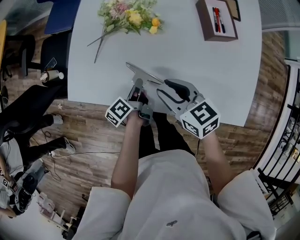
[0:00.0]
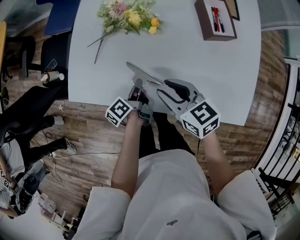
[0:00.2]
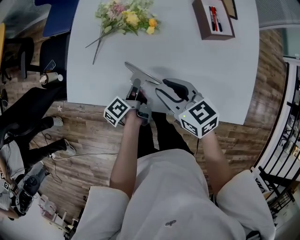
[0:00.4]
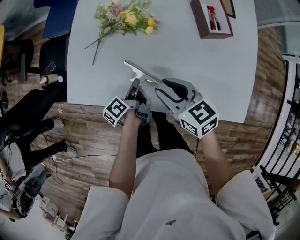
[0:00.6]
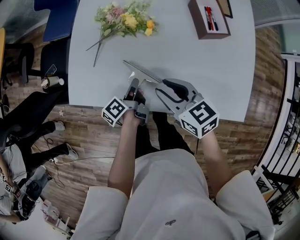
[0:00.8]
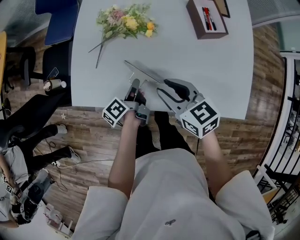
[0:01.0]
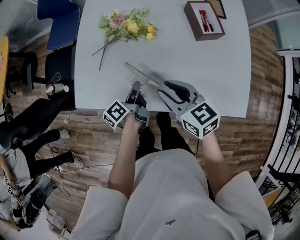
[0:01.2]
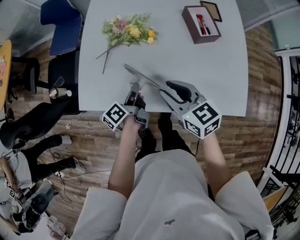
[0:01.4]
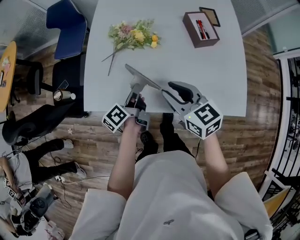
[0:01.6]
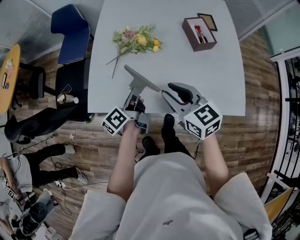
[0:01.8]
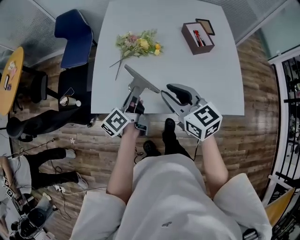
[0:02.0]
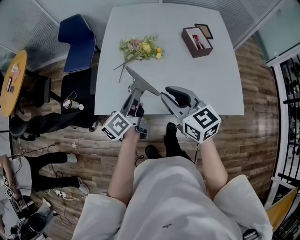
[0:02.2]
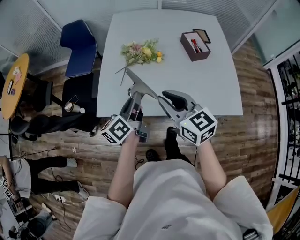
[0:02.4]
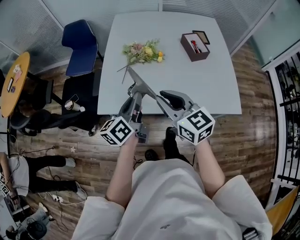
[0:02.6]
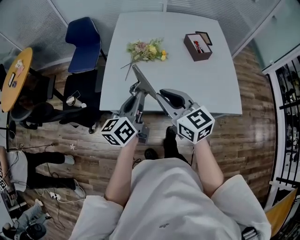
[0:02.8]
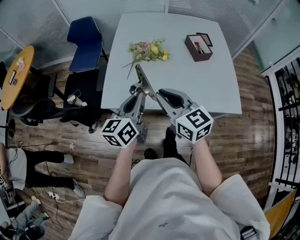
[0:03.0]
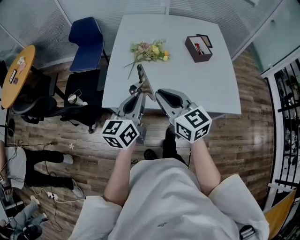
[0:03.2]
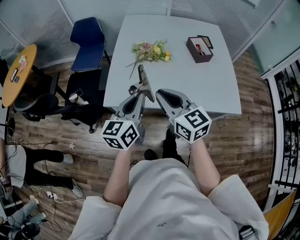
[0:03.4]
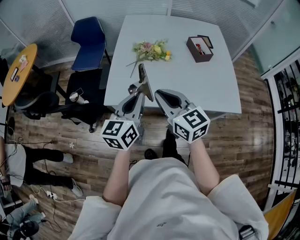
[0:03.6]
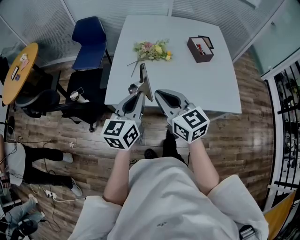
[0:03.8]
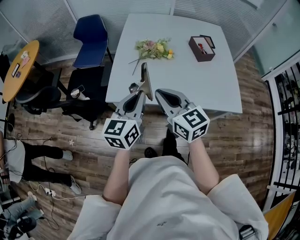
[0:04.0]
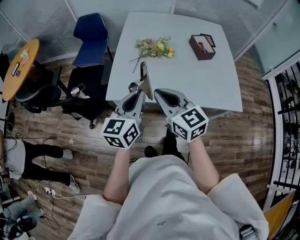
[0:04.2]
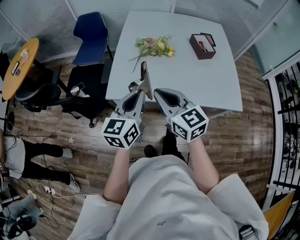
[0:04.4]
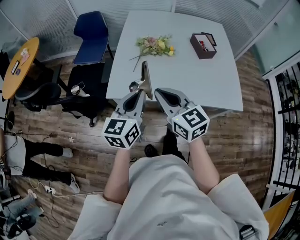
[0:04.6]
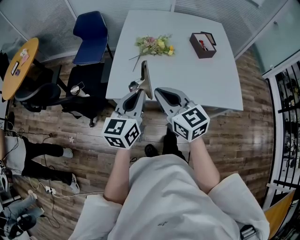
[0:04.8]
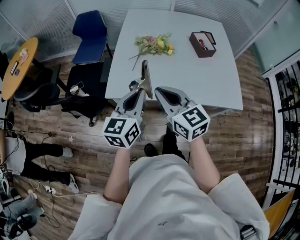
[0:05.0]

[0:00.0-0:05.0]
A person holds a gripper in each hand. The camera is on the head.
0.0 to 1.6 s: The two grippers go approximately 10 cm upward.
1.6 to 3.4 s: The left gripper travels upward, backward and to the left by approximately 25 cm, and twists some 50 degrees clockwise, seen from behind; the right gripper heads to the left, upward and backward, covering some 20 cm, and closes its fingers.
3.4 to 5.0 s: The grippers make only small movements.

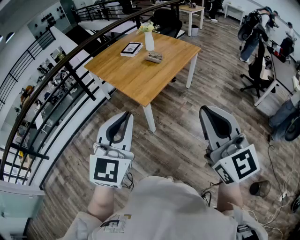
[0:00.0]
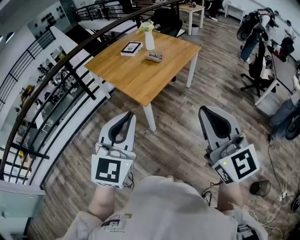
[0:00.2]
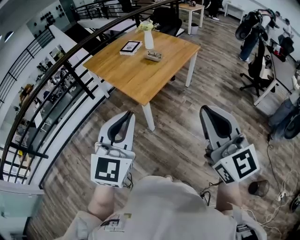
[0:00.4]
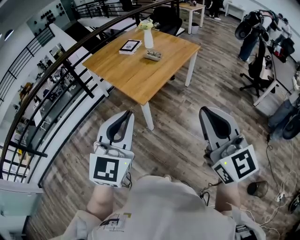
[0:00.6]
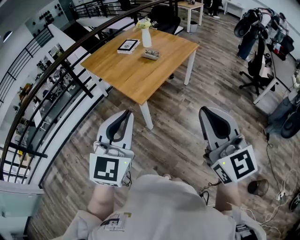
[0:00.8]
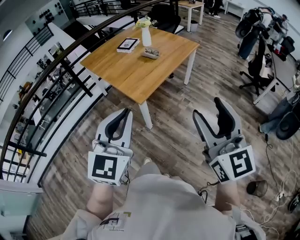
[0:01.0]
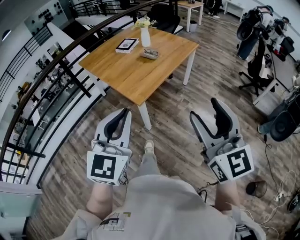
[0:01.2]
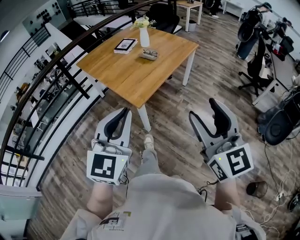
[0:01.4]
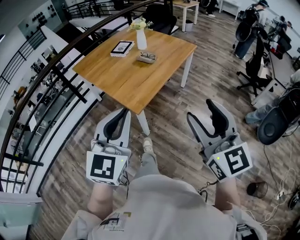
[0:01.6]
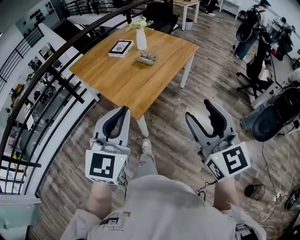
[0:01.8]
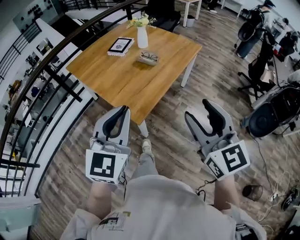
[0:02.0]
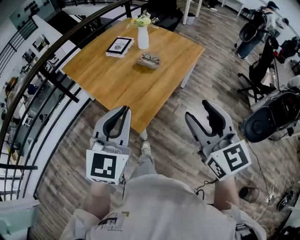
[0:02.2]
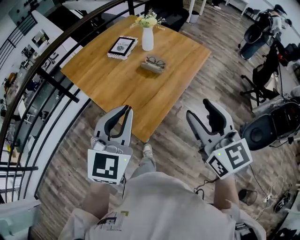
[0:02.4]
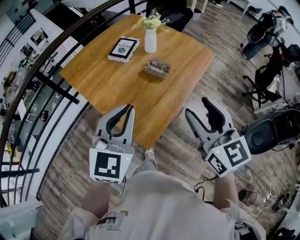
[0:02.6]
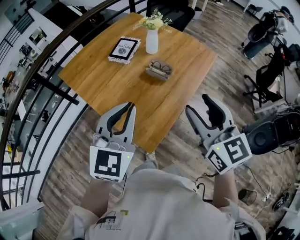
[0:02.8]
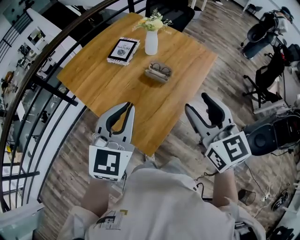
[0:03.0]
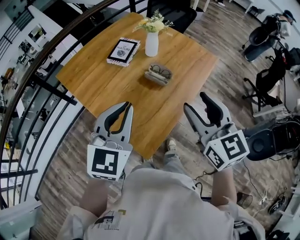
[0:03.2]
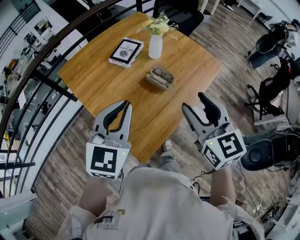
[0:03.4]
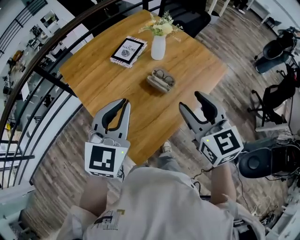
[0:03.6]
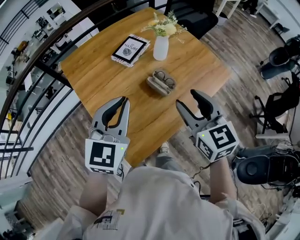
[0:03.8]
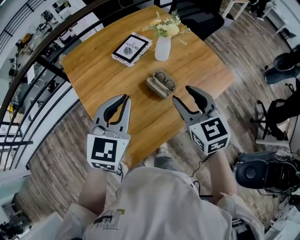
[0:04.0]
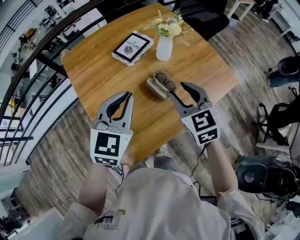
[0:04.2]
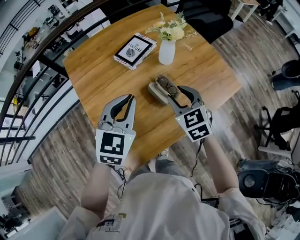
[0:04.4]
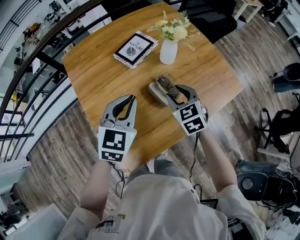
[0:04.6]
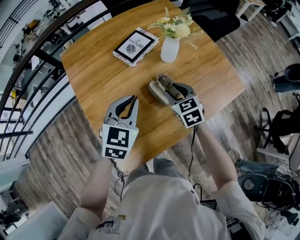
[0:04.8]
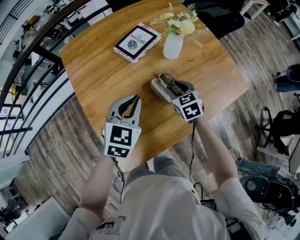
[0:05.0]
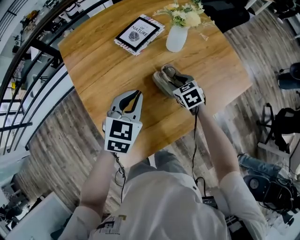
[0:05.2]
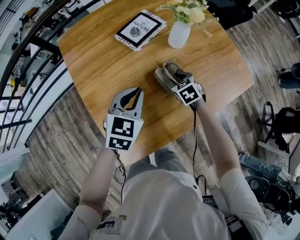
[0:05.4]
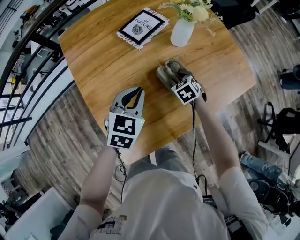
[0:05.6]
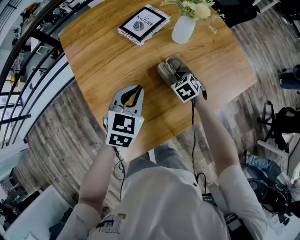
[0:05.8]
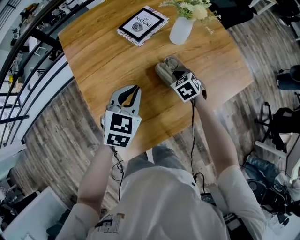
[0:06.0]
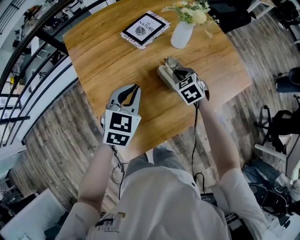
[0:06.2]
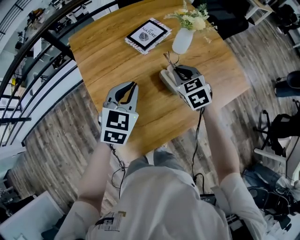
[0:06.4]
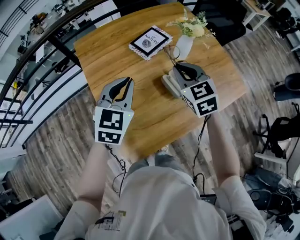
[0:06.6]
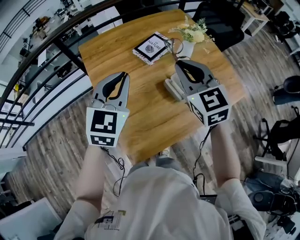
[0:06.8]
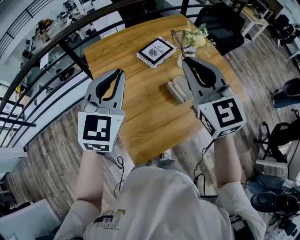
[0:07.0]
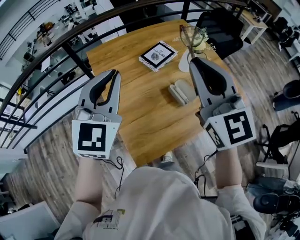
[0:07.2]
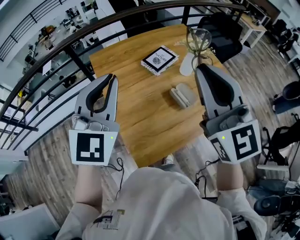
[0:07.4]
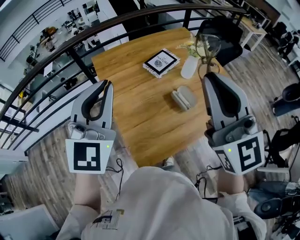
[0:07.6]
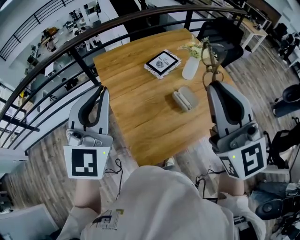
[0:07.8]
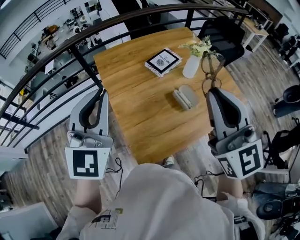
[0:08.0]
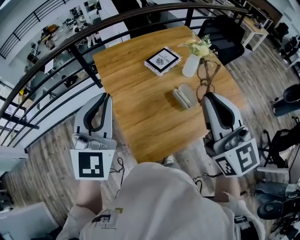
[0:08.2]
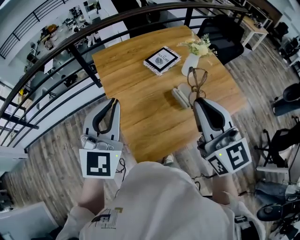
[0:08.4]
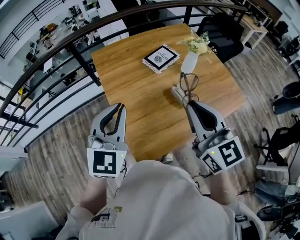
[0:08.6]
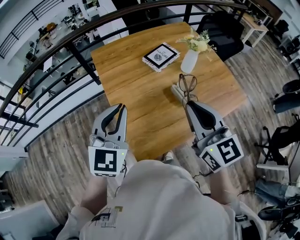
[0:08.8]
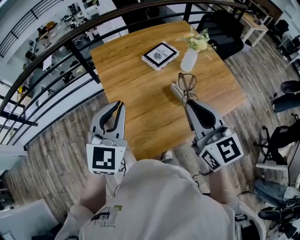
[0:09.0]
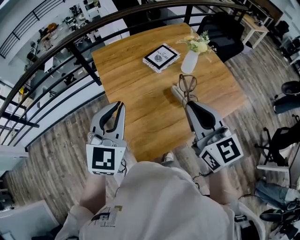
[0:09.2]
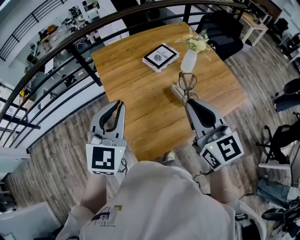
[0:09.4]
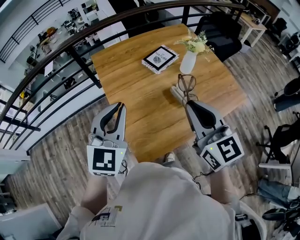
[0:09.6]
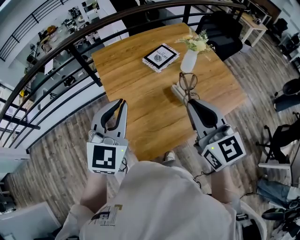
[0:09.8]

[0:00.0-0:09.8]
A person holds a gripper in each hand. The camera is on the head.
0.0 to 1.4 s: The grippers both shift forward by approximately 5 cm. The right gripper opens.
1.4 to 2.8 s: Both grippers are carried forward, approximately 50 cm.
2.8 to 4.2 s: The right gripper heads forward and downward, covering approximately 30 cm, and changes its angle by roughly 30 degrees; the left gripper travels forward and to the right by some 20 cm.
4.2 to 5.6 s: The left gripper shifts about 20 cm downward. The right gripper is displaced downward and forward by roughly 35 cm, and tips its fingers downward by roughly 30 degrees.
5.6 to 7.0 s: The left gripper shifts some 30 cm upward and to the left, and changes its angle by roughly 30 degrees, while the right gripper is displaced upward by roughly 50 cm, tilts its fingers approximately 50 degrees upward, and closes.
7.0 to 8.4 s: The right gripper shifts roughly 10 cm backward. The left gripper moves backward and to the left, some 10 cm.
8.4 to 9.8 s: The grippers make only small movements.

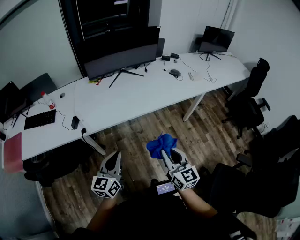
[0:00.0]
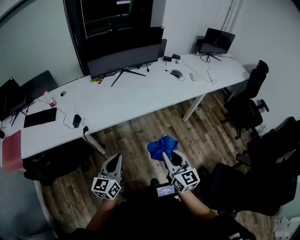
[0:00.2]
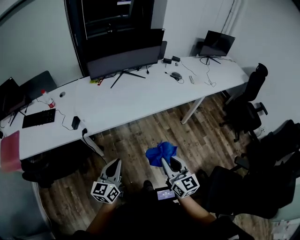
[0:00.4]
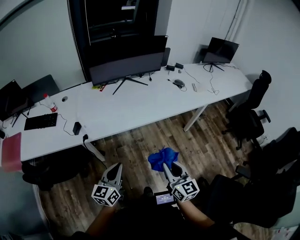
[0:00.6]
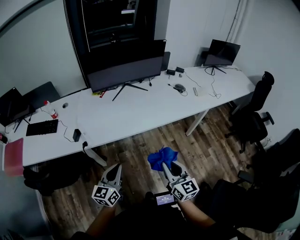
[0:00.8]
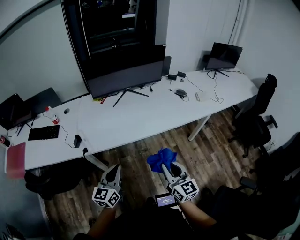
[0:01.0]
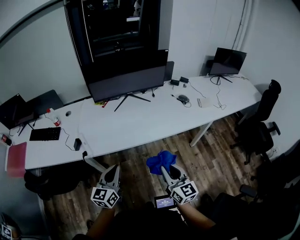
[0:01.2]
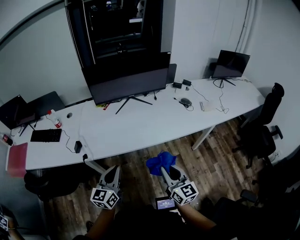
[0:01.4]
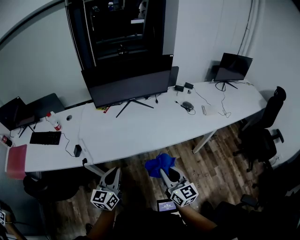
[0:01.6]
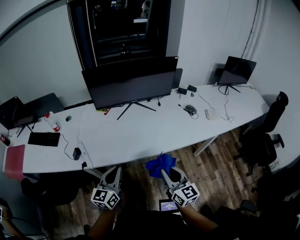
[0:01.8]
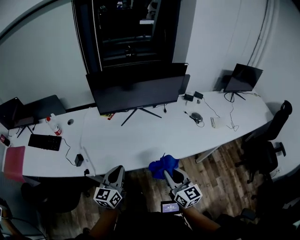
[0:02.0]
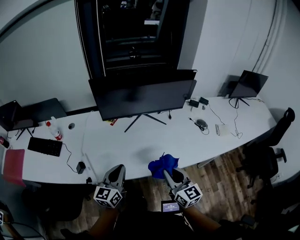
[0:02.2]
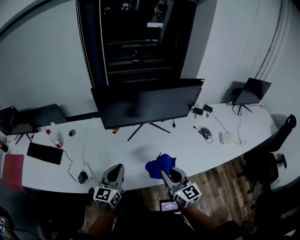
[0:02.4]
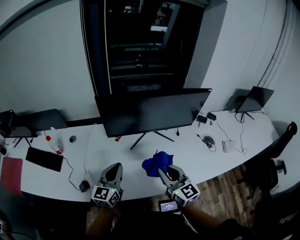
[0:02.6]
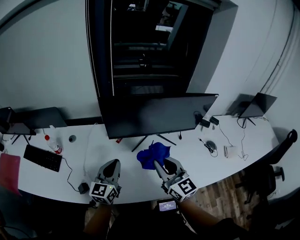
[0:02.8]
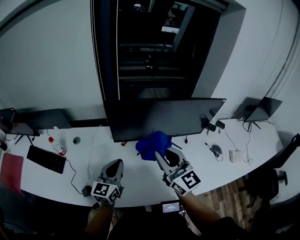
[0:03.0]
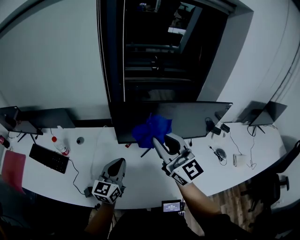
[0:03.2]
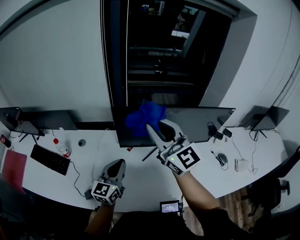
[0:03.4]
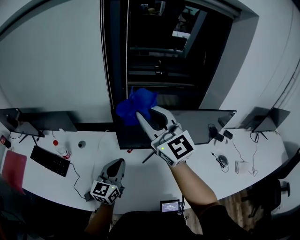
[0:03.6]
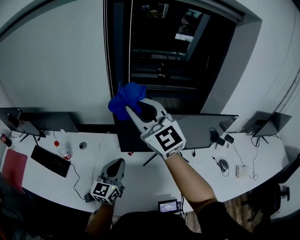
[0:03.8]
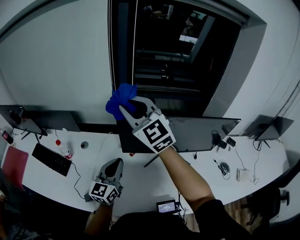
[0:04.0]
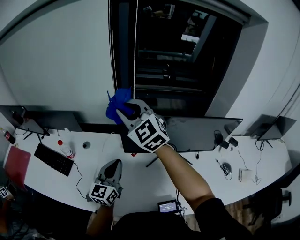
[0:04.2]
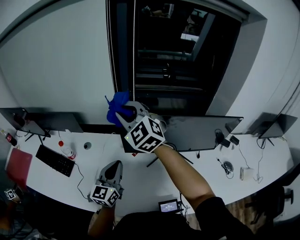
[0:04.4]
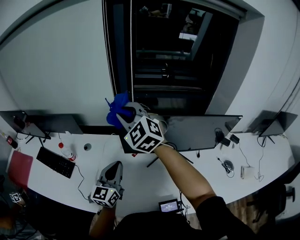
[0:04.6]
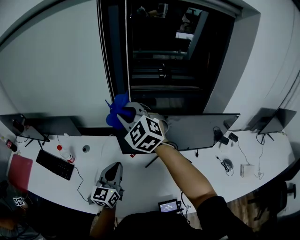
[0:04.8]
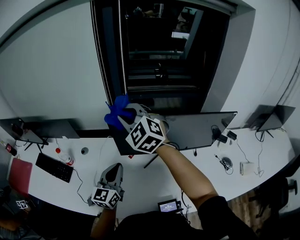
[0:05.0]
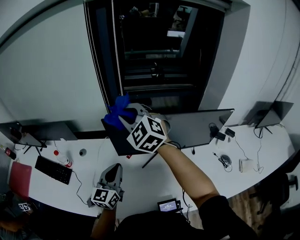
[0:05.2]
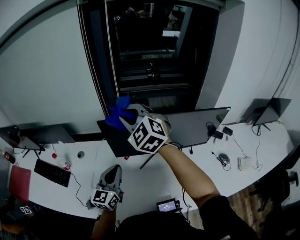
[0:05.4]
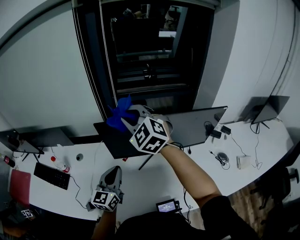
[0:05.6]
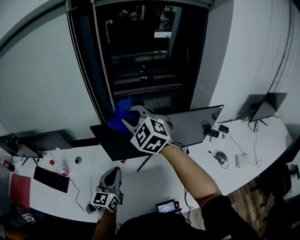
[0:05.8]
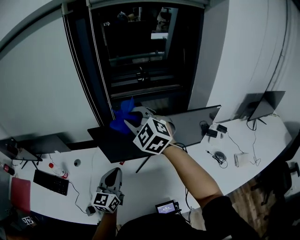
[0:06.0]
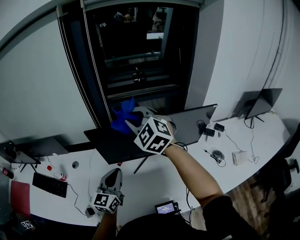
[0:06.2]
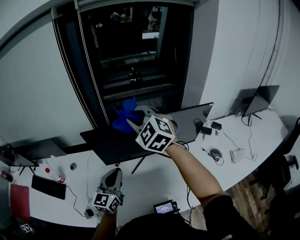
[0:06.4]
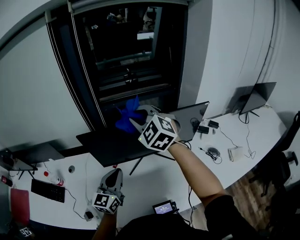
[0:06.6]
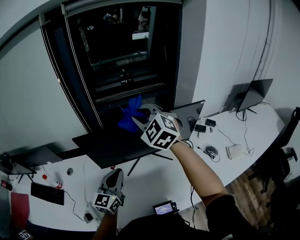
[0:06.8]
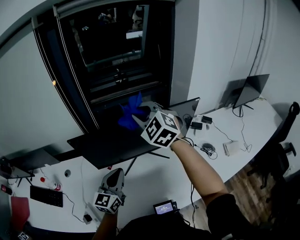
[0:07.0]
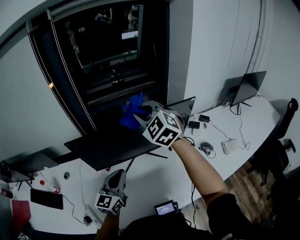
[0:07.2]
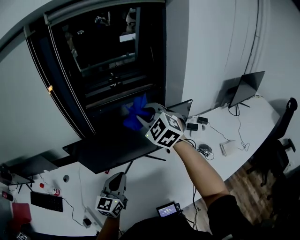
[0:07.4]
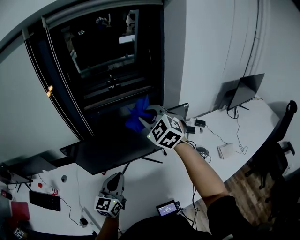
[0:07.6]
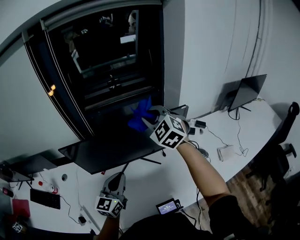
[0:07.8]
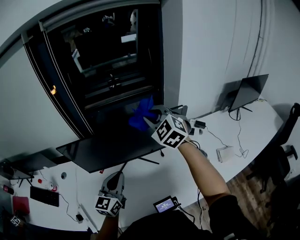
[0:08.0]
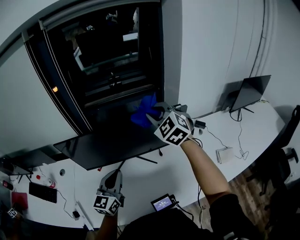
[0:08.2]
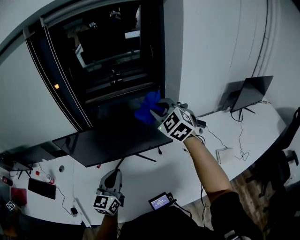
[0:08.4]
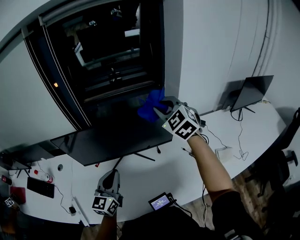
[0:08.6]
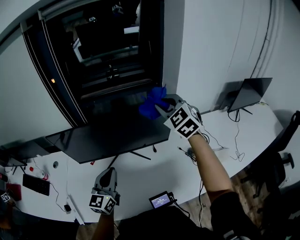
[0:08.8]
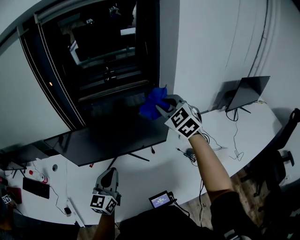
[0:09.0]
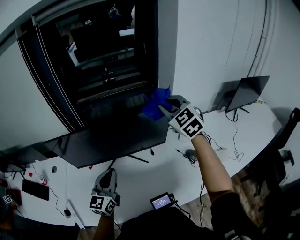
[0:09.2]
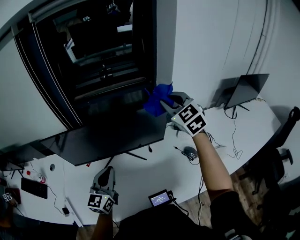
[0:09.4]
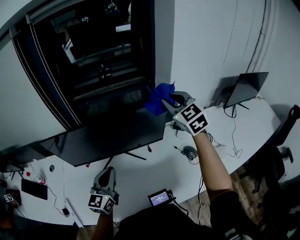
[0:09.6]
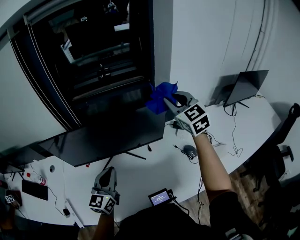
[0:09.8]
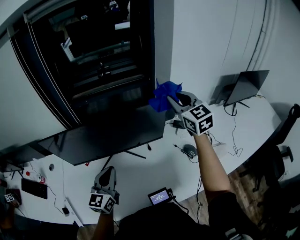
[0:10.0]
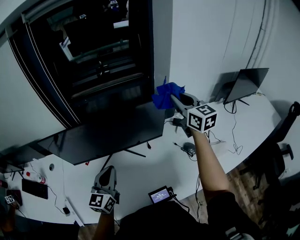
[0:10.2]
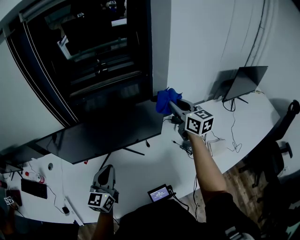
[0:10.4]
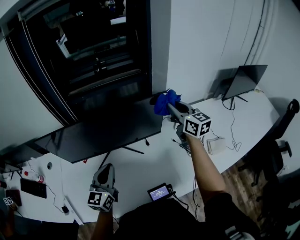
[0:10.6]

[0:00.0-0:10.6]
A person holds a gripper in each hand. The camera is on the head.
0.0 to 1.6 s: The grippers both shift forward by some 15 cm.
1.6 to 3.0 s: The two grippers go about 40 cm forward. The right gripper rotates about 20 degrees.
3.0 to 4.6 s: The right gripper goes about 25 cm forward, to the left and upward, and rolls counterclockwise, seen from behind, by about 40 degrees; the left gripper shifts some 5 cm forward.
4.6 to 6.0 s: The right gripper travels to the right by about 15 cm. Meanwhile the left gripper heads to the right, covering about 5 cm.
6.0 to 7.6 s: The left gripper goes about 15 cm to the right. Meanwhile the right gripper heads to the right, covering about 20 cm.
7.6 to 9.0 s: The right gripper heads to the right, covering about 15 cm; the left gripper shifts about 5 cm to the right.
9.0 to 10.6 s: The right gripper is displaced to the right and downward by roughly 10 cm, and rotates around the line of its fingers by approximately 50 degrees, clockwise from behind.
